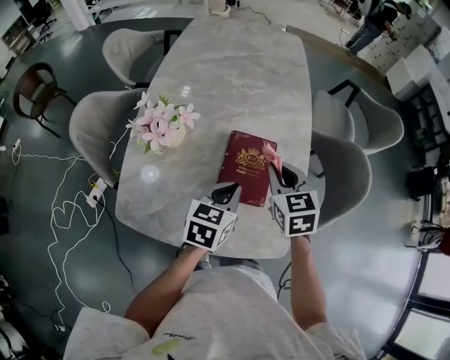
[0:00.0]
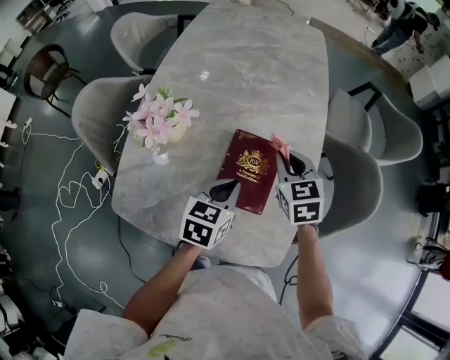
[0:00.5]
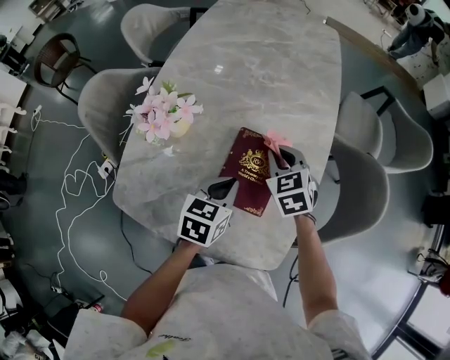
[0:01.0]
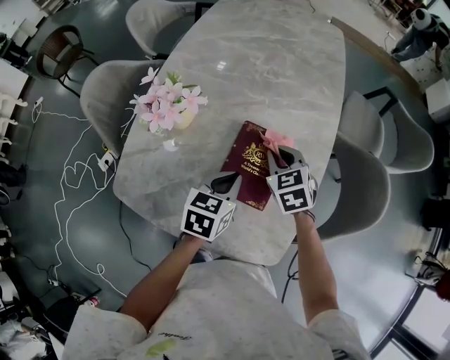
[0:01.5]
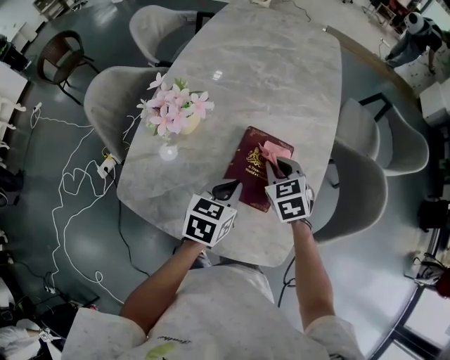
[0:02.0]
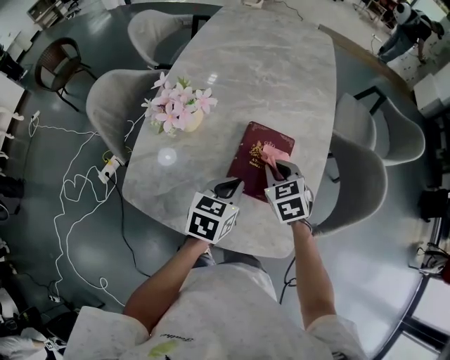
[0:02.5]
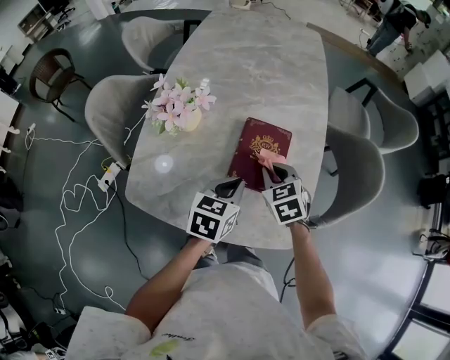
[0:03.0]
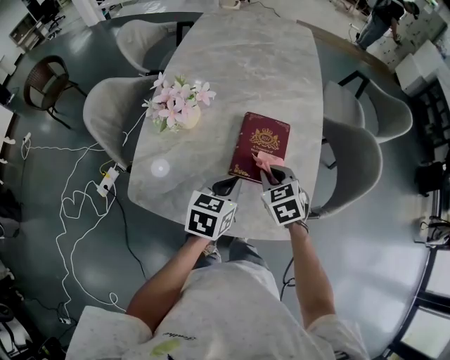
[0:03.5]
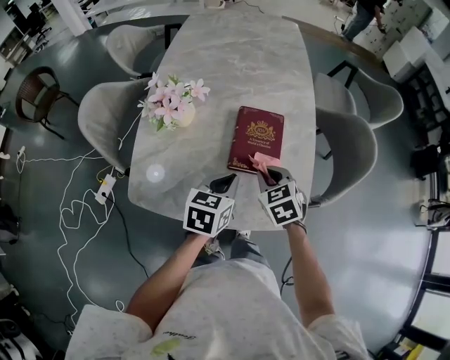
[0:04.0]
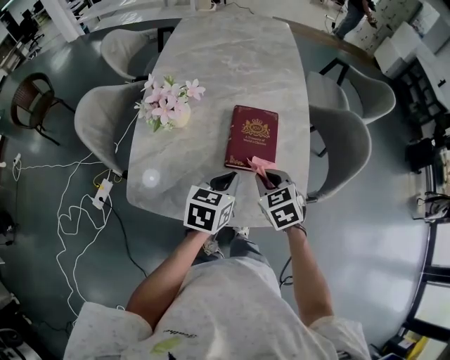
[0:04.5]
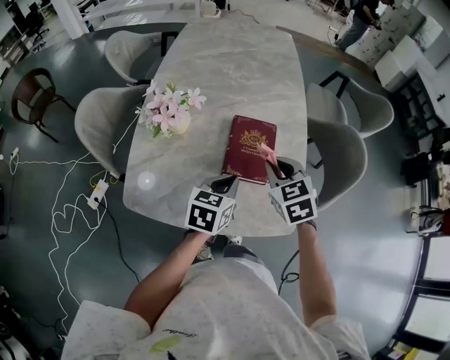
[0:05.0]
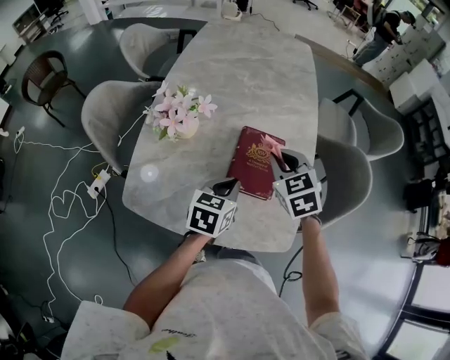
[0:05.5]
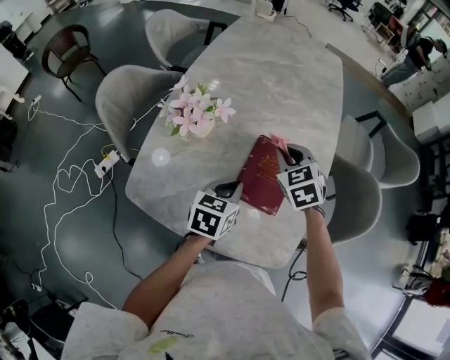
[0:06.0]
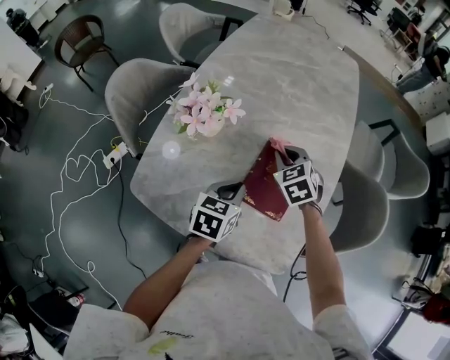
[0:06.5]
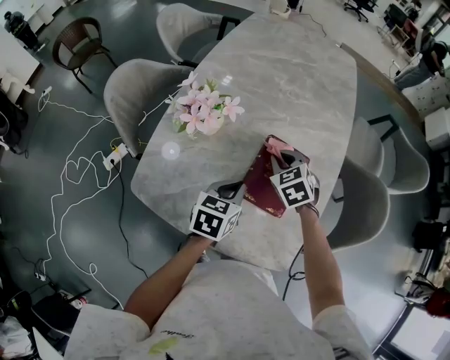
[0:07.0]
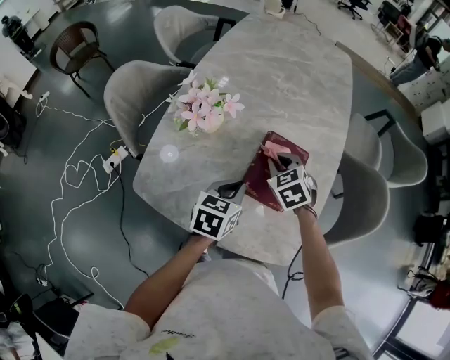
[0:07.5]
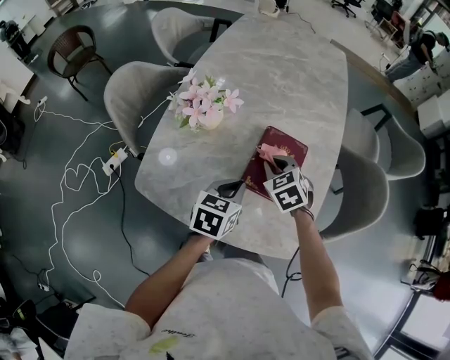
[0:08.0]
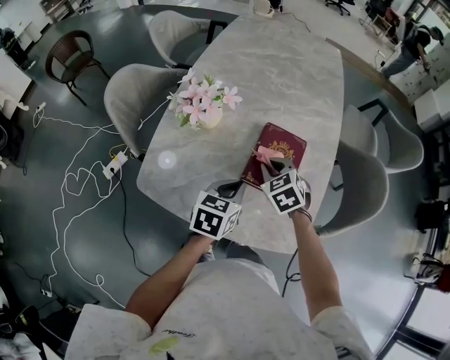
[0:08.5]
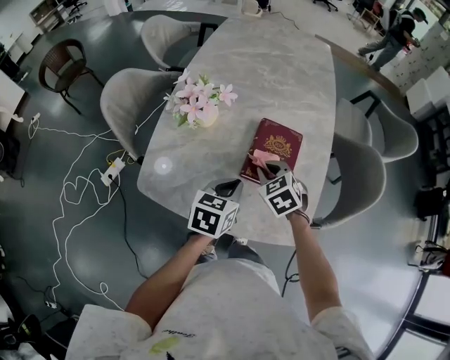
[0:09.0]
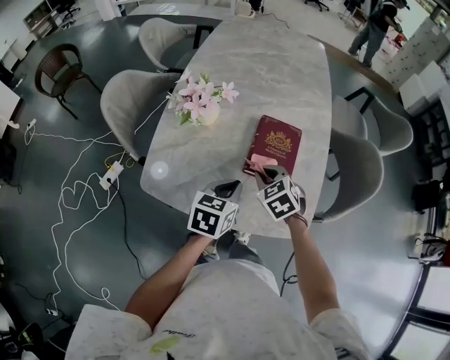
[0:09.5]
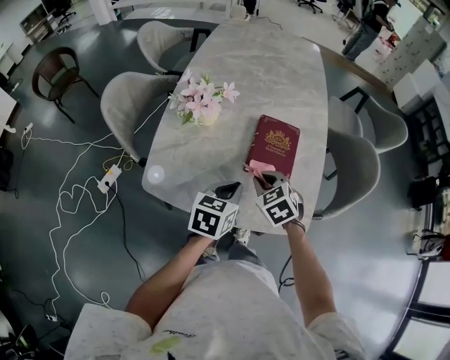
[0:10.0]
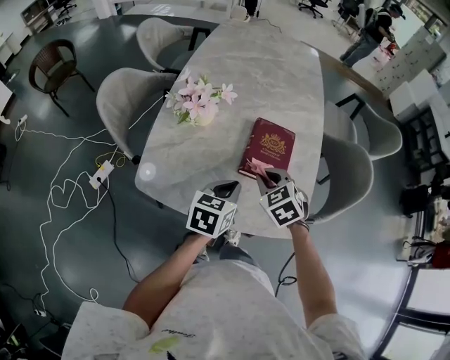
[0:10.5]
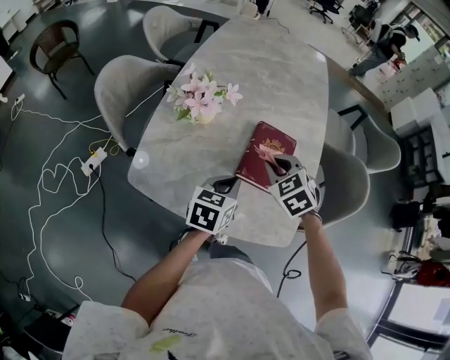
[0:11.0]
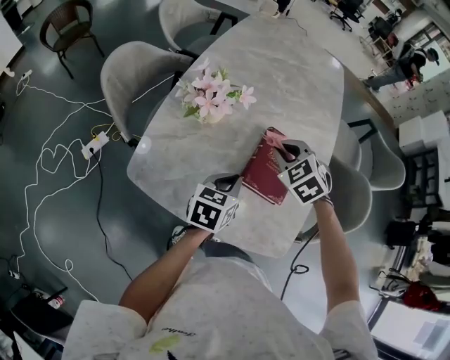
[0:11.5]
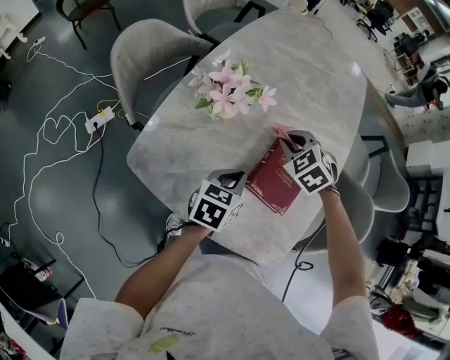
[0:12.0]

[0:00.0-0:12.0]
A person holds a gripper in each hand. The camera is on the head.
0:00.0 to 0:02.0: The right gripper shifts approximately 10 cm downward, and rotates about 20 degrees.
0:02.0 to 0:04.0: The right gripper shifts about 15 cm backward, while the left gripper goes about 10 cm backward.
0:04.0 to 0:06.0: The left gripper shifts roughly 5 cm forward, while the right gripper shifts some 15 cm forward and upward.
0:06.0 to 0:08.0: The right gripper travels downward and backward by approximately 10 cm.
0:08.0 to 0:10.0: The right gripper goes approximately 10 cm backward; the left gripper is displaced backward by roughly 5 cm.
0:10.0 to 0:12.0: The left gripper heads forward, covering about 10 cm; the right gripper moves forward, approximately 20 cm, and rotates some 30 degrees.

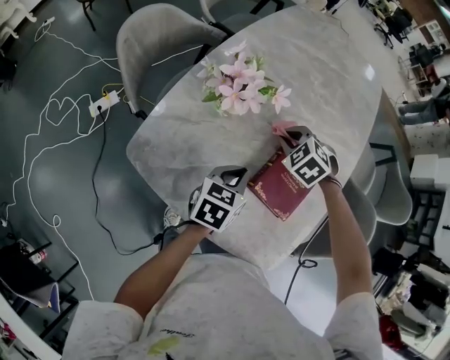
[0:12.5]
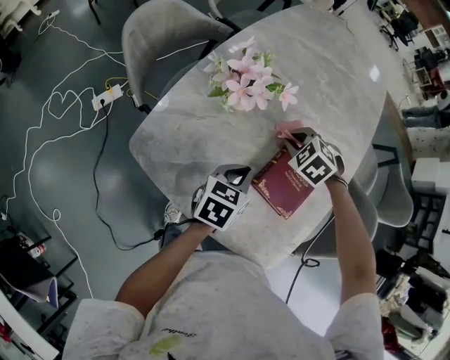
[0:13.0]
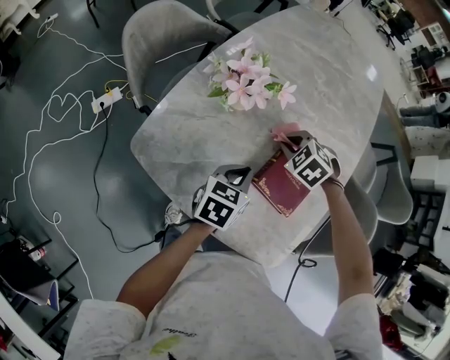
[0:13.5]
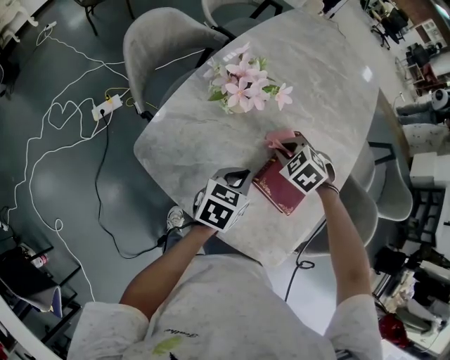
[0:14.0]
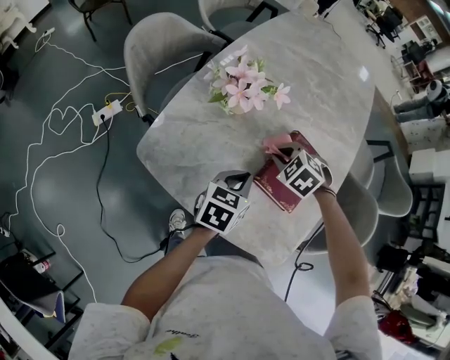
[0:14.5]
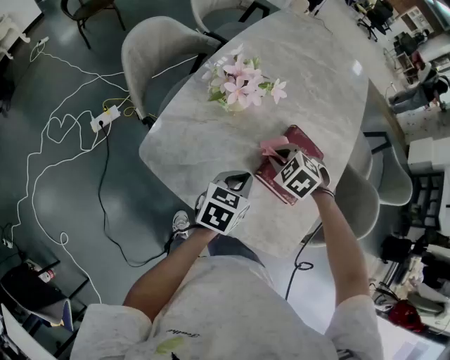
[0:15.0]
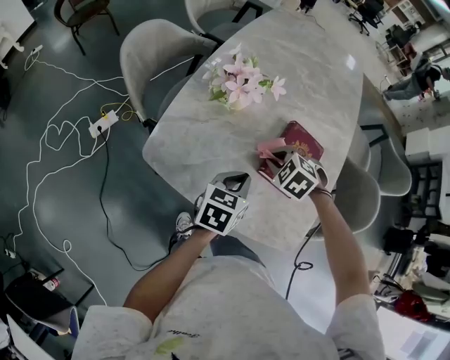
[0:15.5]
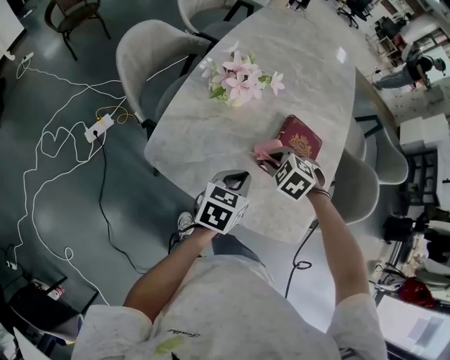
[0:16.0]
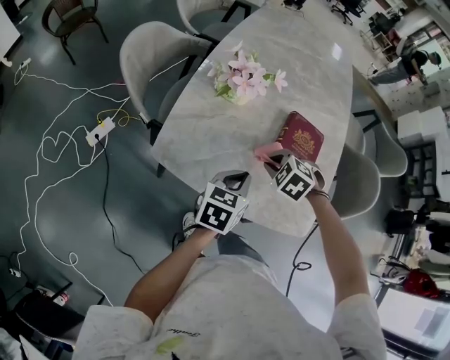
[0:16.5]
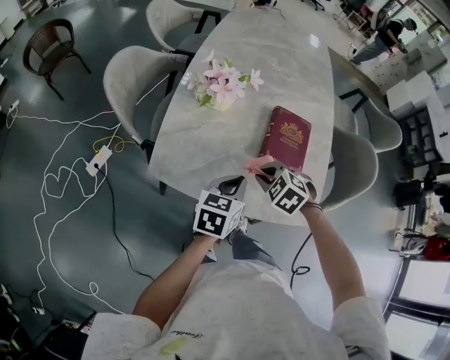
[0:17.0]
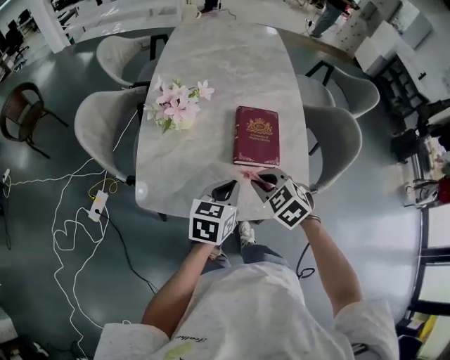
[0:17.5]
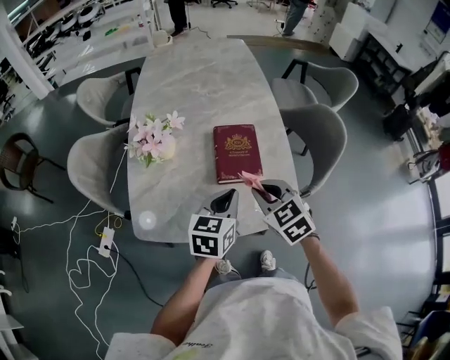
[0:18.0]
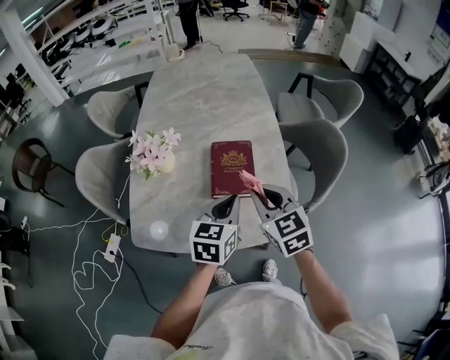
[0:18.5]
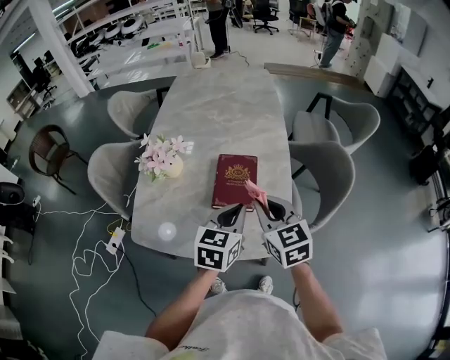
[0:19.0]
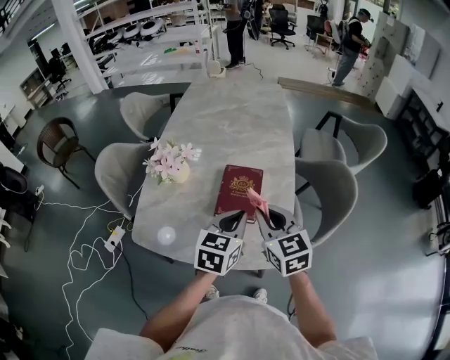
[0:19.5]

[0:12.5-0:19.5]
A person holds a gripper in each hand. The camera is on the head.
0:12.5 to 0:14.5: The right gripper moves backward, roughly 10 cm.
0:14.5 to 0:16.0: The right gripper heads backward, covering about 10 cm. The left gripper changes place by some 5 cm.
0:16.0 to 0:17.5: The right gripper moves backward and upward, some 10 cm, and changes its angle by about 40 degrees. Meanwhile the left gripper shifts by some 5 cm.
0:17.5 to 0:19.5: The right gripper is displaced upward and to the right by roughly 20 cm, and points its fingers some 30 degrees further upward. Meanwhile the left gripper is displaced to the right and upward by some 15 cm.

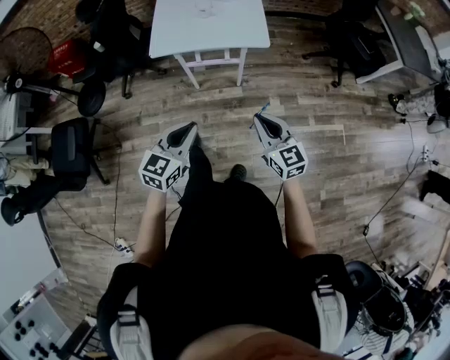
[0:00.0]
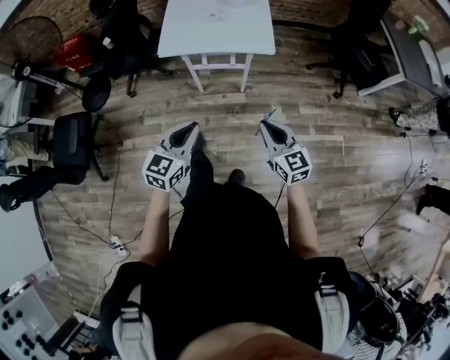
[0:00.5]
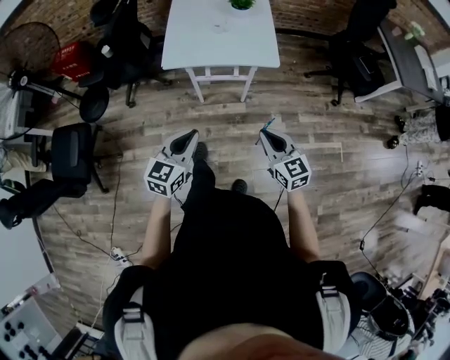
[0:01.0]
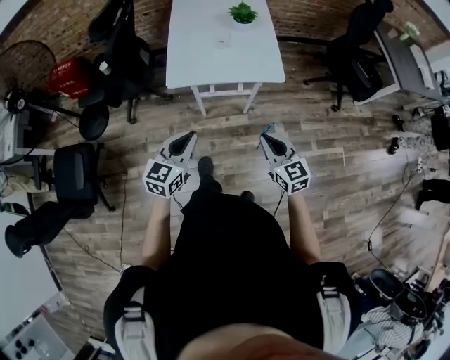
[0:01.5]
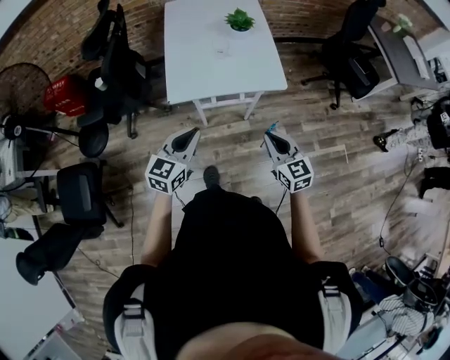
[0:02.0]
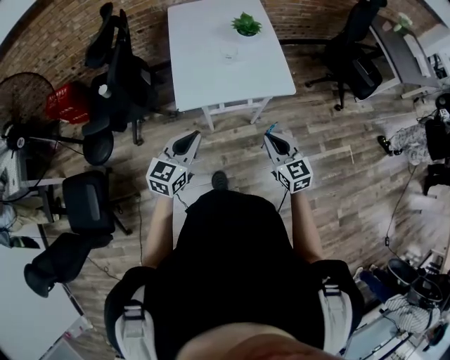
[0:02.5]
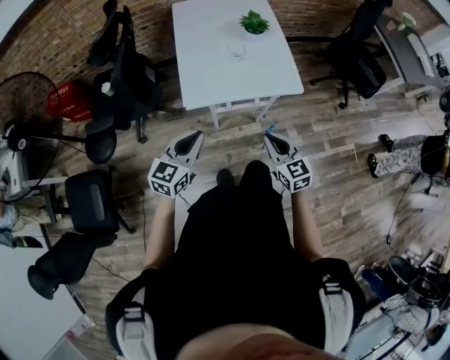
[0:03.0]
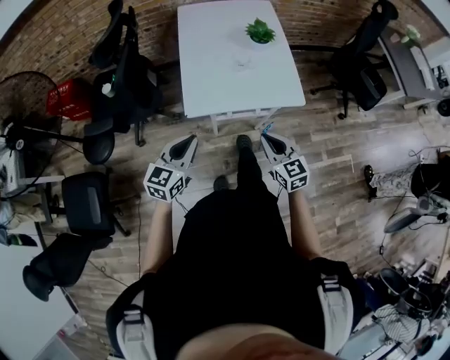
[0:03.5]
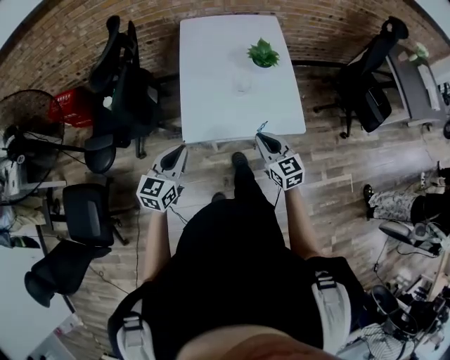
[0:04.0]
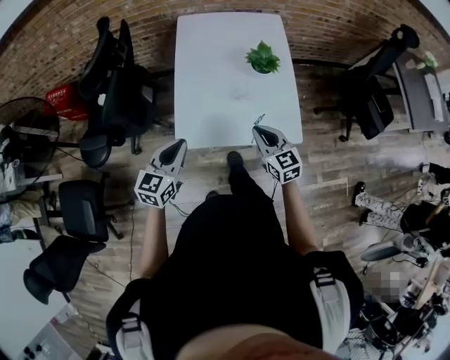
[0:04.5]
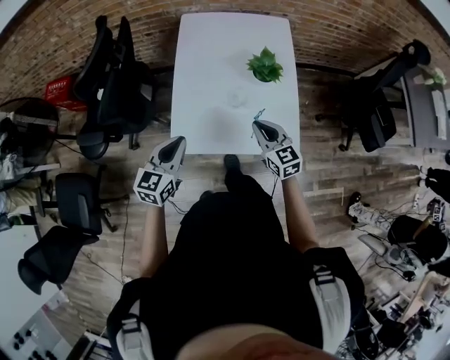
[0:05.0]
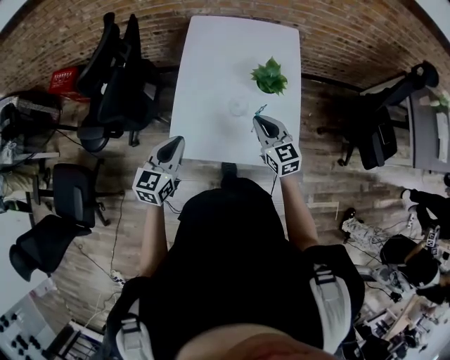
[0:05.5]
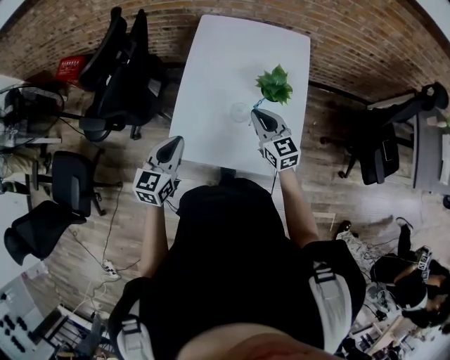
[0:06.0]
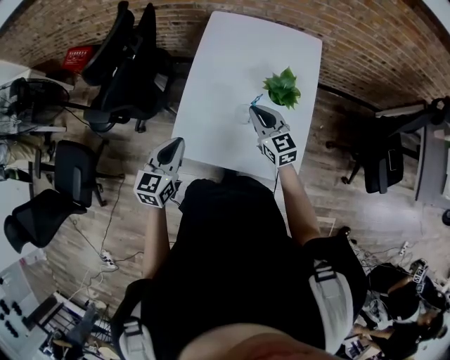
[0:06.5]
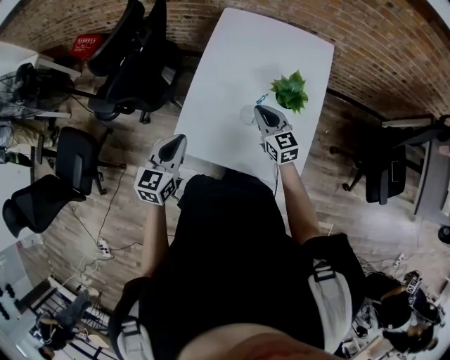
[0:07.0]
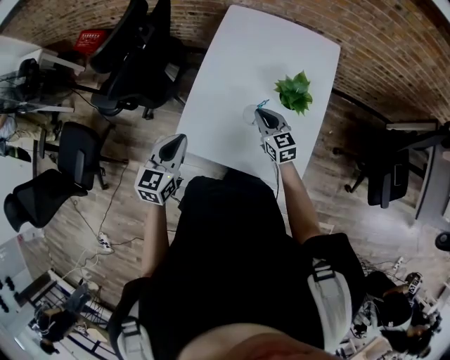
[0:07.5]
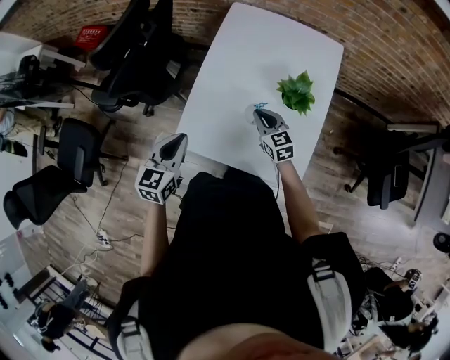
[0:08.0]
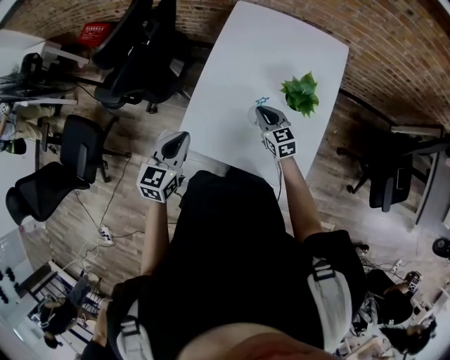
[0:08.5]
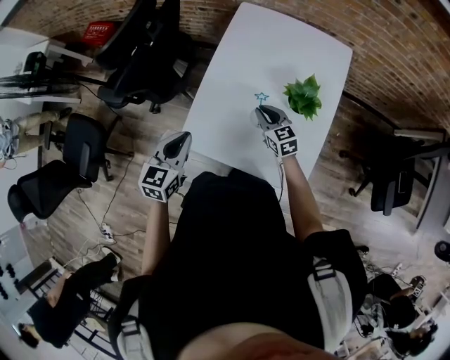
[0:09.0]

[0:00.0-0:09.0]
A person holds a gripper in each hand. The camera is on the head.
0:00.0 to 0:02.0: Both grippers travel together forward and to the left, roughly 20 cm.
0:02.0 to 0:04.5: The two grippers go about 25 cm forward.
0:04.5 to 0:07.0: The right gripper moves forward, some 20 cm. The left gripper goes approximately 10 cm forward, and changes its angle by roughly 20 degrees.
0:07.0 to 0:09.0: The right gripper travels downward by approximately 5 cm.
